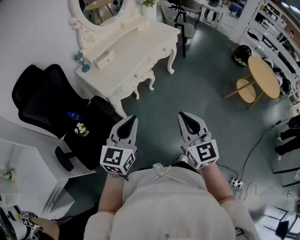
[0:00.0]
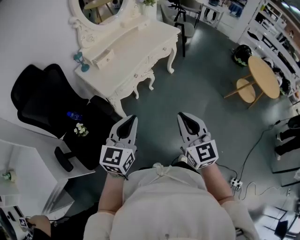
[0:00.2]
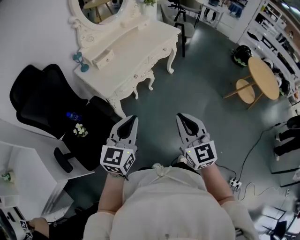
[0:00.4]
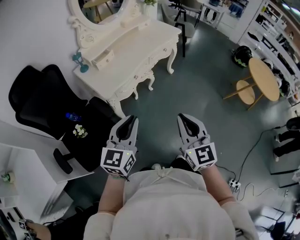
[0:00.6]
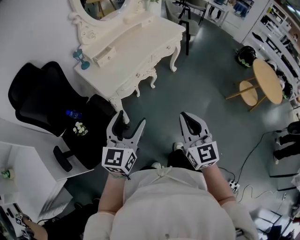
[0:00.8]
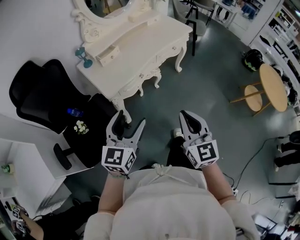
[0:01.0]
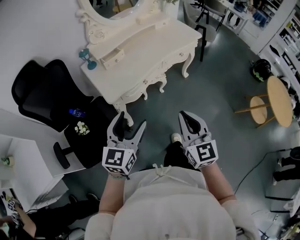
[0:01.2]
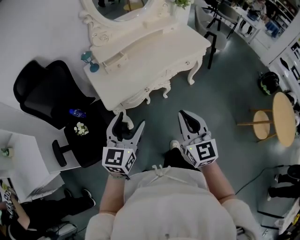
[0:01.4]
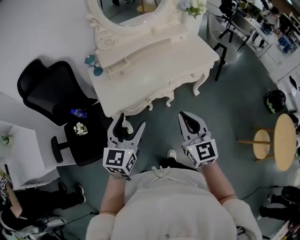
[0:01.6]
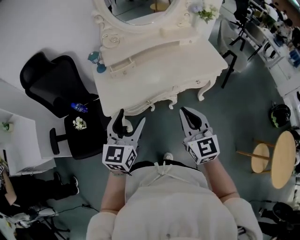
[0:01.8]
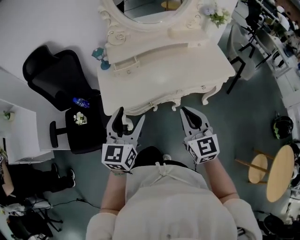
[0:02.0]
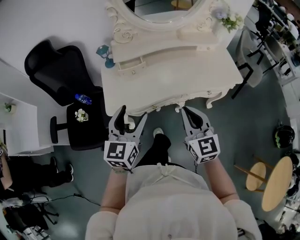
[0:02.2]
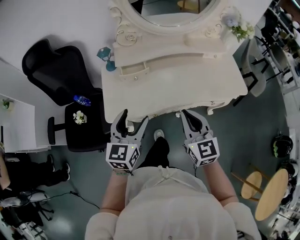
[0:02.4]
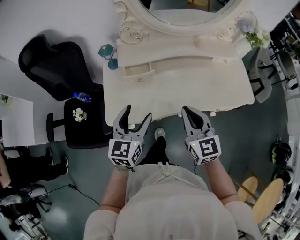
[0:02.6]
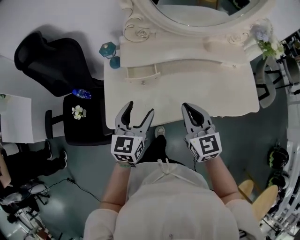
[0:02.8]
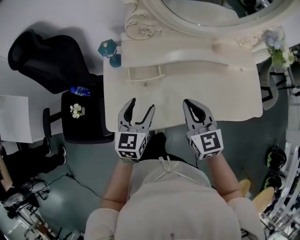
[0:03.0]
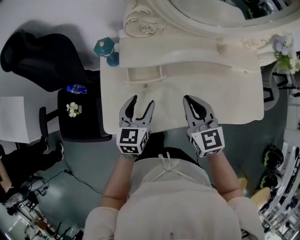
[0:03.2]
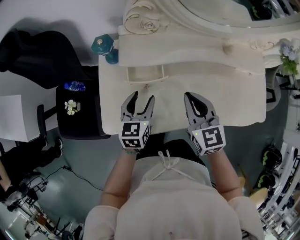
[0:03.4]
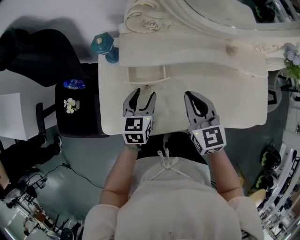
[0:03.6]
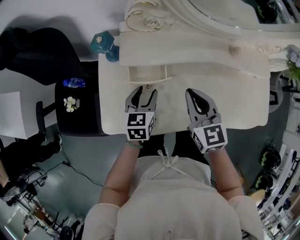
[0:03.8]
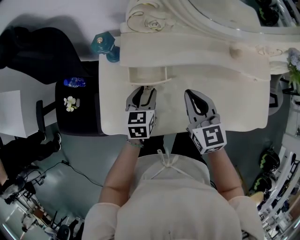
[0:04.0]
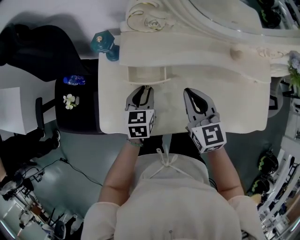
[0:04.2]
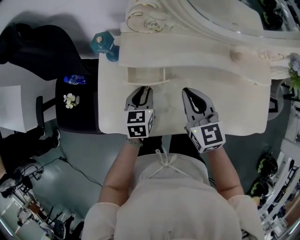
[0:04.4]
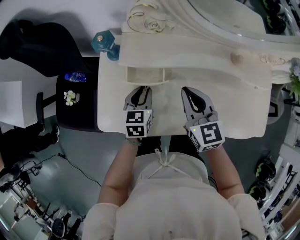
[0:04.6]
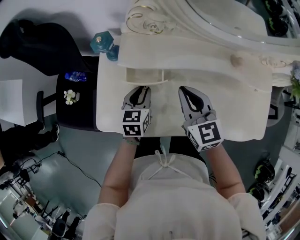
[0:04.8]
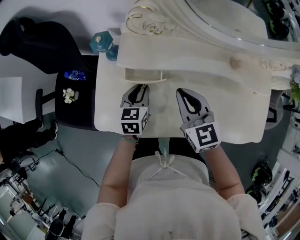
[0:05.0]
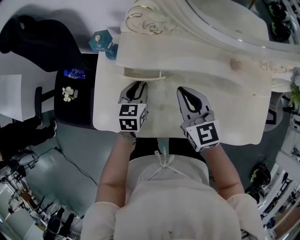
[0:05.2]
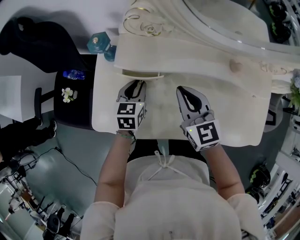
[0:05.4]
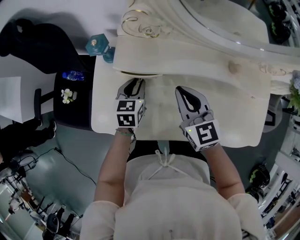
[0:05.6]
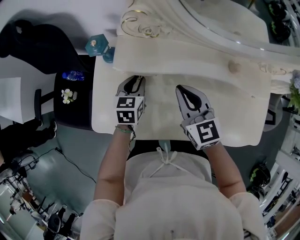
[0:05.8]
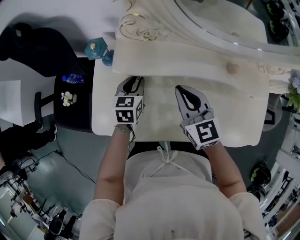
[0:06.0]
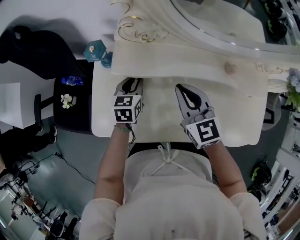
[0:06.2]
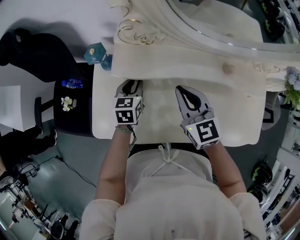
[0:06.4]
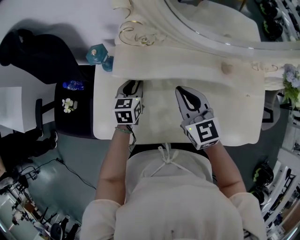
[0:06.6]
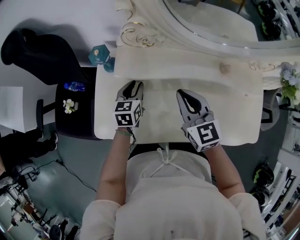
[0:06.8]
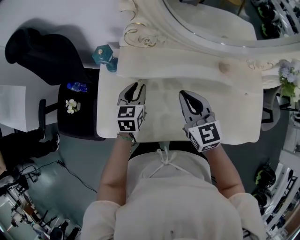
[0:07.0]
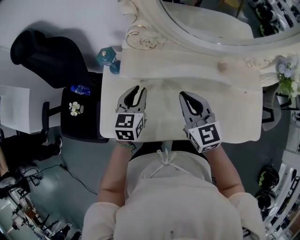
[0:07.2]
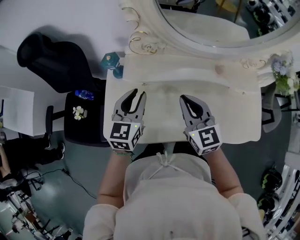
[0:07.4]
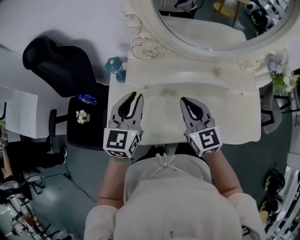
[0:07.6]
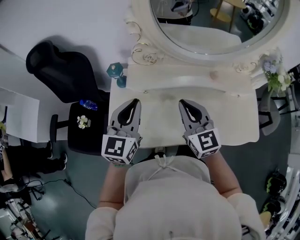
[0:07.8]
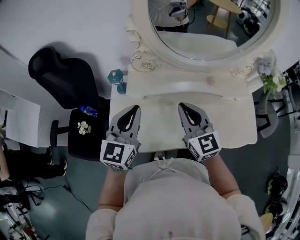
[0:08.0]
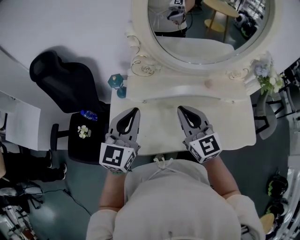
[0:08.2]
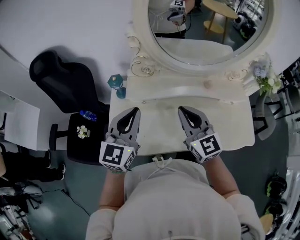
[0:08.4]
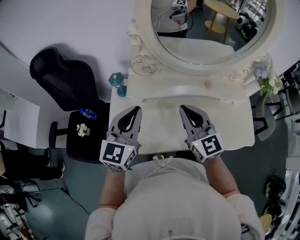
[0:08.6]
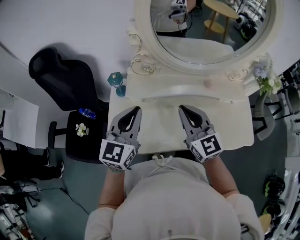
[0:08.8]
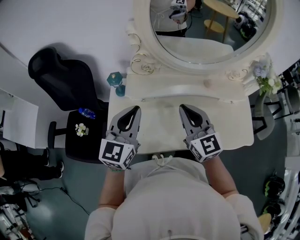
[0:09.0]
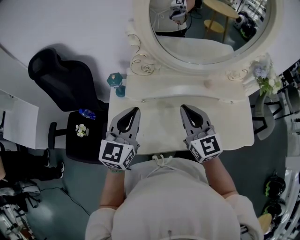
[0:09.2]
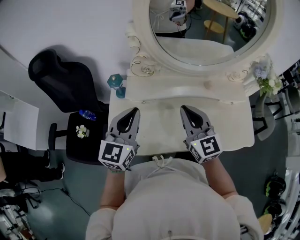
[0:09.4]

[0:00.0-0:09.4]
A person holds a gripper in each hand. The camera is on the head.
0:00.0 to 0:01.6: Both grippers travel together forward, some 30 cm. The right gripper turns by approximately 20 degrees. The left gripper swivels some 30 degrees, and opens.
0:01.6 to 0:03.2: The right gripper ends up some 40 cm from where it was, and changes its angle by about 30 degrees; the left gripper ends up approximately 40 cm from where it was, and changes its angle by roughly 30 degrees.
0:03.2 to 0:04.8: The right gripper moves forward, roughly 5 cm, while the left gripper is displaced downward and forward by approximately 10 cm, and closes its fingers.
0:04.8 to 0:06.2: The left gripper travels forward by approximately 5 cm.
0:06.2 to 0:07.8: The right gripper heads upward and backward, covering about 15 cm. Meanwhile the left gripper heads upward and backward, covering approximately 30 cm, and angles its fingers upward, by some 30 degrees.
0:07.8 to 0:09.4: There are only small adjustments of the grippers.

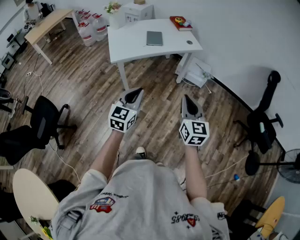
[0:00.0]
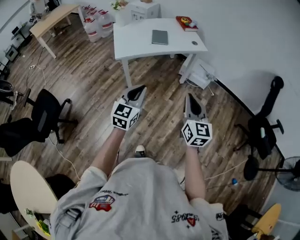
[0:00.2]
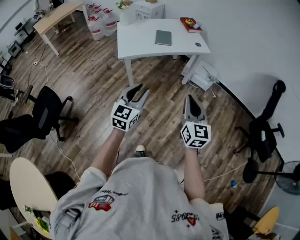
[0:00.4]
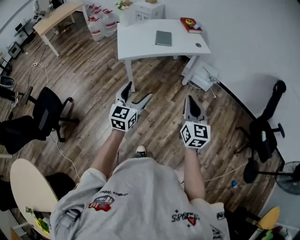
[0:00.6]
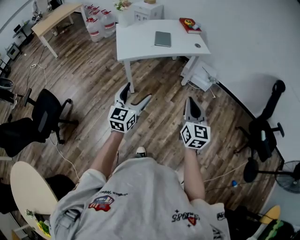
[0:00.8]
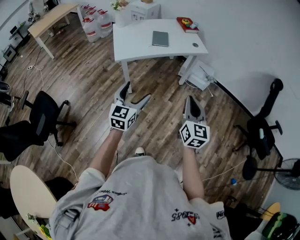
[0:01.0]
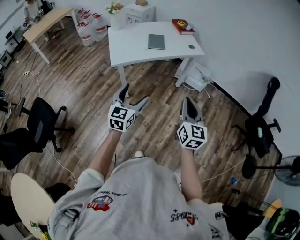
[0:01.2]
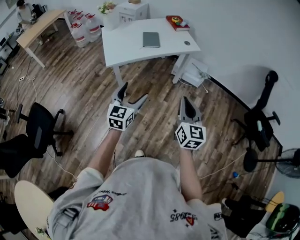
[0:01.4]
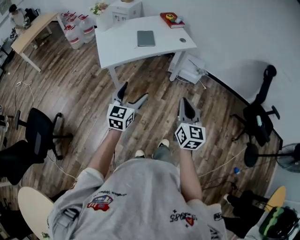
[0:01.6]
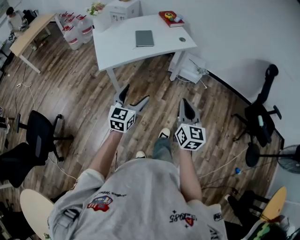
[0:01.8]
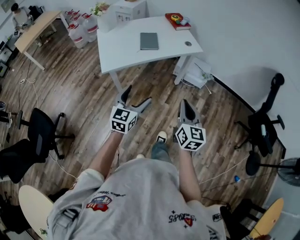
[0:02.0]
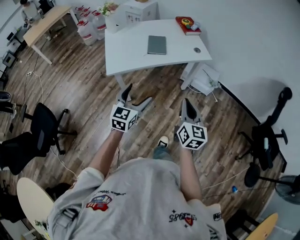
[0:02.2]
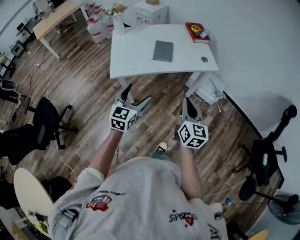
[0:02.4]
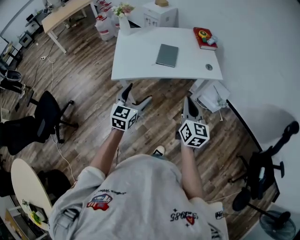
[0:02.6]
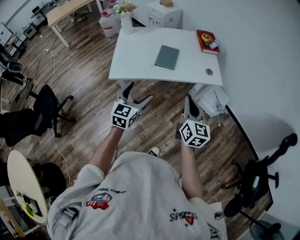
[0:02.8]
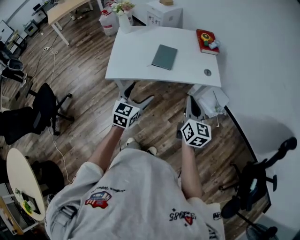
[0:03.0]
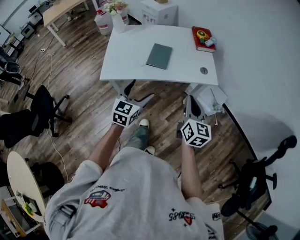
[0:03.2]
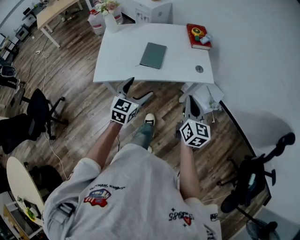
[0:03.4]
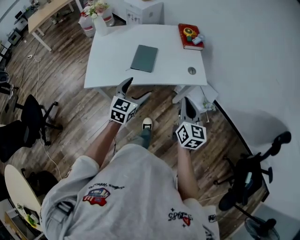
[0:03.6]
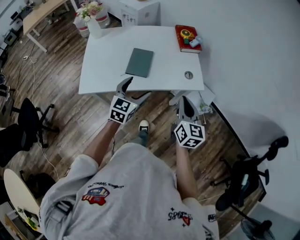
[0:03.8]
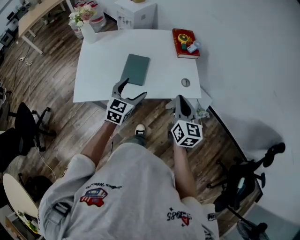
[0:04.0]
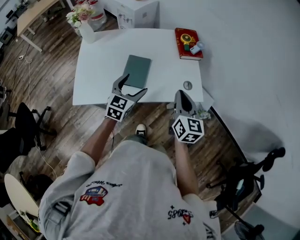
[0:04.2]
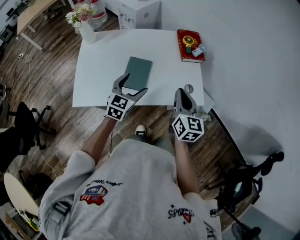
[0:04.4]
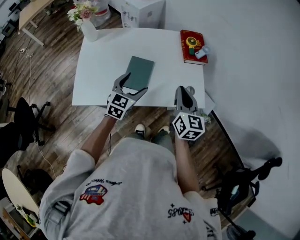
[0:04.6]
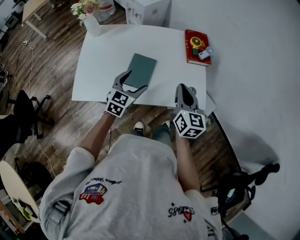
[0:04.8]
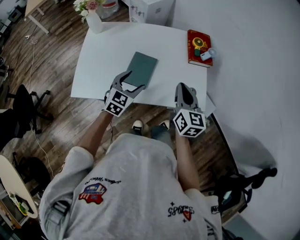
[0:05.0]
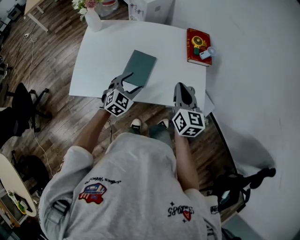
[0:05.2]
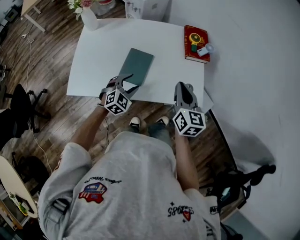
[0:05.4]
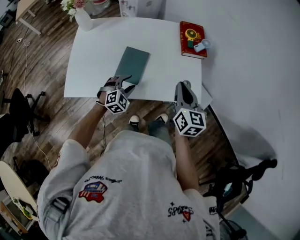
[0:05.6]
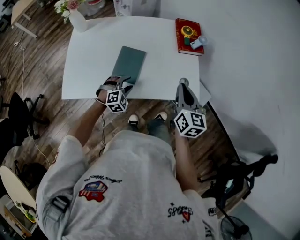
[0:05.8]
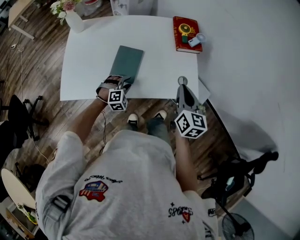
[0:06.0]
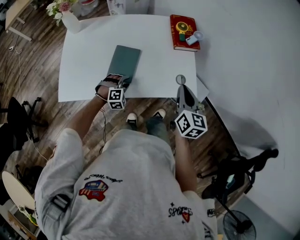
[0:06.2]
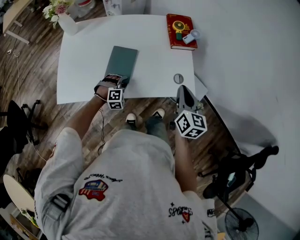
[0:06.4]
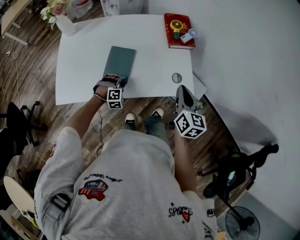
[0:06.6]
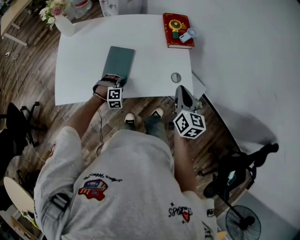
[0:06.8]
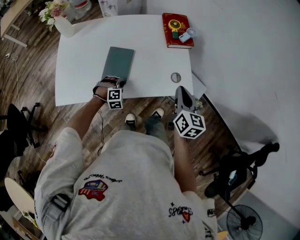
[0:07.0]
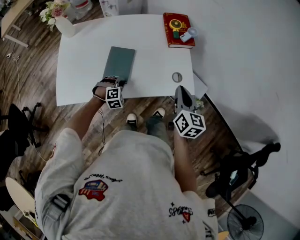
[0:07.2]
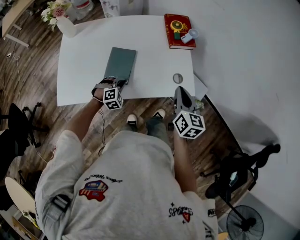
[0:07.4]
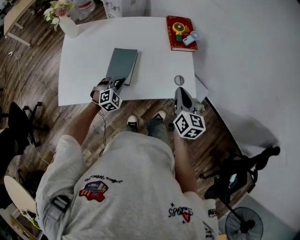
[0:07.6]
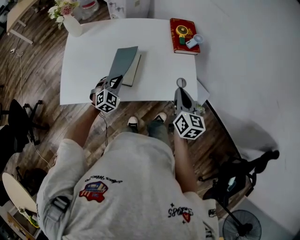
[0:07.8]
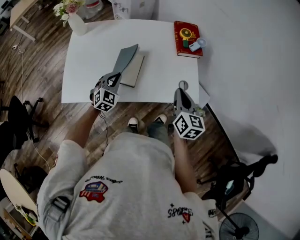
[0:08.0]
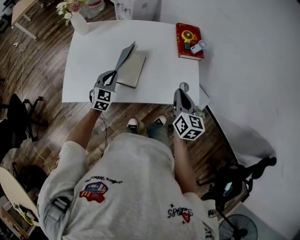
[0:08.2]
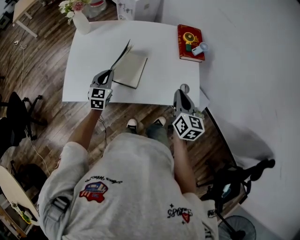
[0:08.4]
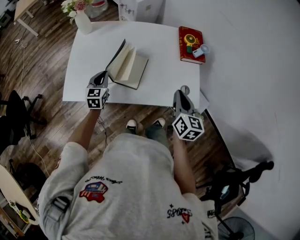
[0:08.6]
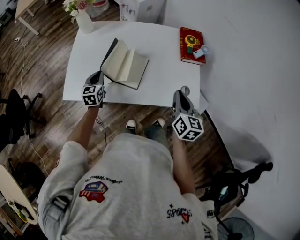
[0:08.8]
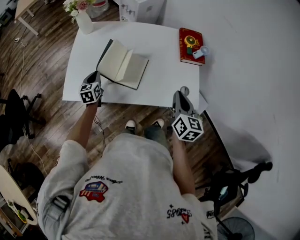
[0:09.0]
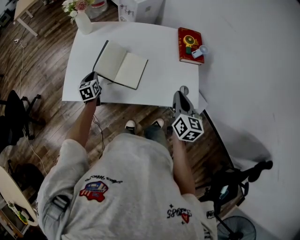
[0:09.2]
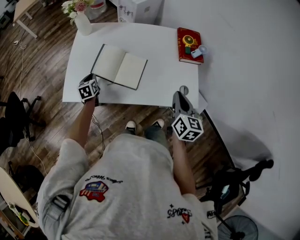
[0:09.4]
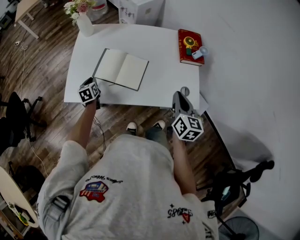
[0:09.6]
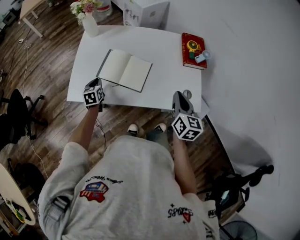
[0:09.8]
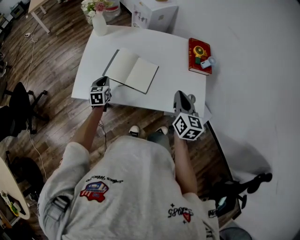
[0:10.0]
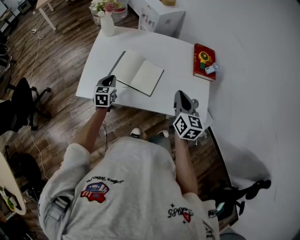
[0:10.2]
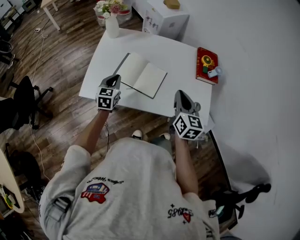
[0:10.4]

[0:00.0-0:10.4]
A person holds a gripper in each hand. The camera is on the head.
0:00.0 to 0:01.4: The right gripper changes place by some 5 cm. Meanwhile the left gripper goes some 10 cm forward and to the left, and opens up.
0:01.4 to 0:03.0: Both grippers move forward, some 35 cm. The right gripper rotates approximately 20 degrees.
0:03.0 to 0:04.4: Both grippers travel together forward, some 35 cm.
0:04.4 to 0:06.0: The left gripper shifts some 20 cm downward, twists roughly 50 degrees clockwise, seen from behind, and closes its fingers. The right gripper shifts about 5 cm to the right.
0:06.0 to 0:07.4: The left gripper closes up.
0:07.4 to 0:09.0: The right gripper travels to the left by some 10 cm. Meanwhile the left gripper goes about 25 cm to the left, and rolls counterclockwise, seen from behind, by about 80 degrees.
0:09.0 to 0:10.4: The right gripper shifts some 10 cm to the left; the left gripper moves upward, approximately 10 cm.

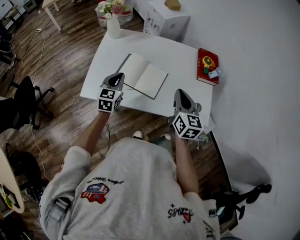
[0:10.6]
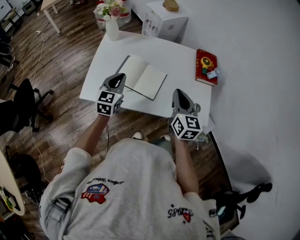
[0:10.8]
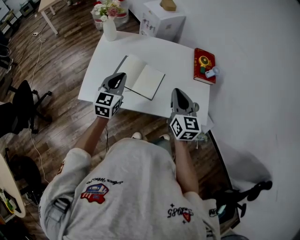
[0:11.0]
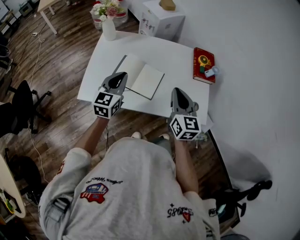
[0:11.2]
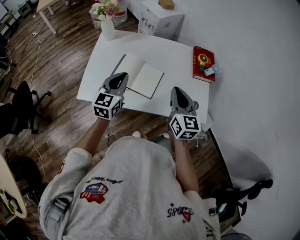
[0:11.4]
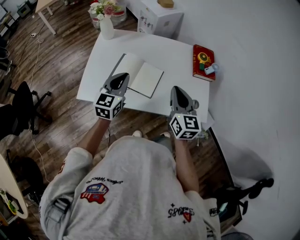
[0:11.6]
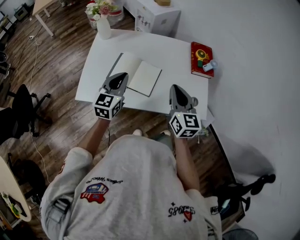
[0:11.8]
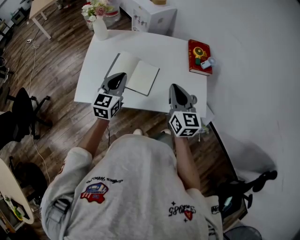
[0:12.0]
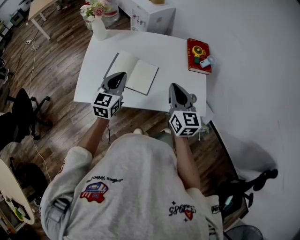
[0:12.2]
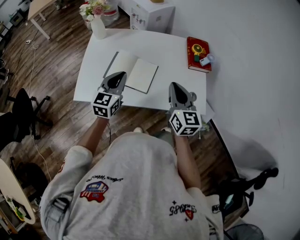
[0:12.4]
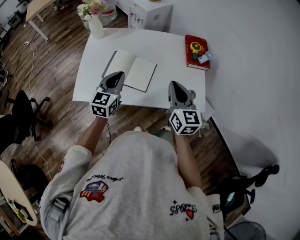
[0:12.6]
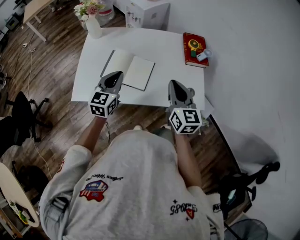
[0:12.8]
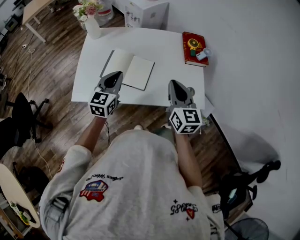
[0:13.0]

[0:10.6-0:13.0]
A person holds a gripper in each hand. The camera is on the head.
0:10.6 to 0:11.8: The left gripper shifts some 10 cm upward and to the right.
0:11.8 to 0:13.0: There are only small adjustments of the grippers.

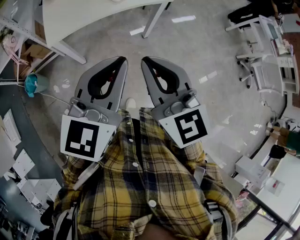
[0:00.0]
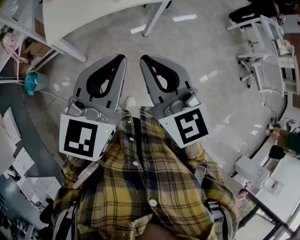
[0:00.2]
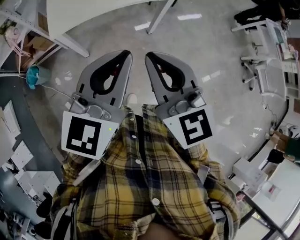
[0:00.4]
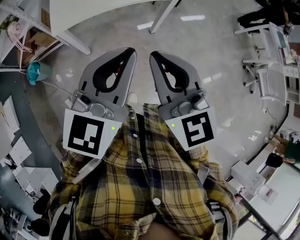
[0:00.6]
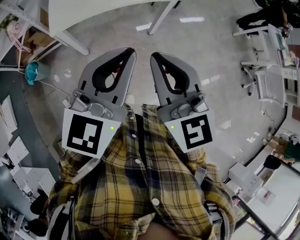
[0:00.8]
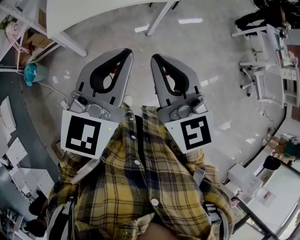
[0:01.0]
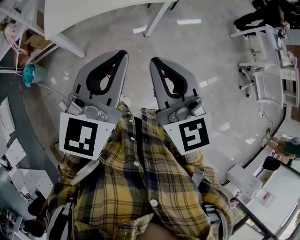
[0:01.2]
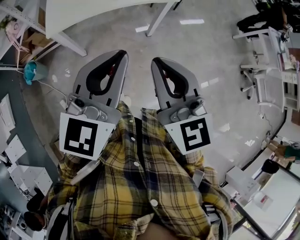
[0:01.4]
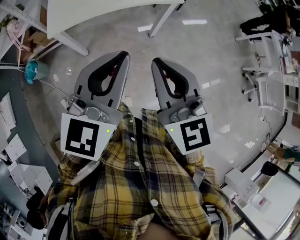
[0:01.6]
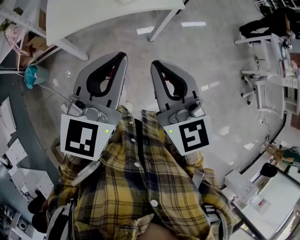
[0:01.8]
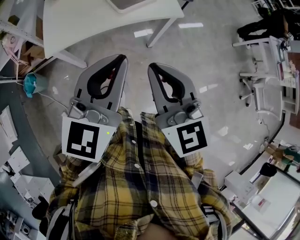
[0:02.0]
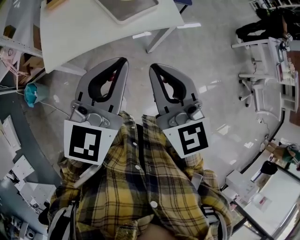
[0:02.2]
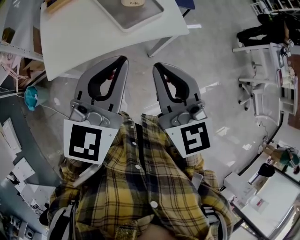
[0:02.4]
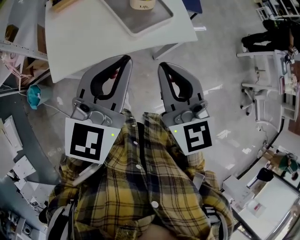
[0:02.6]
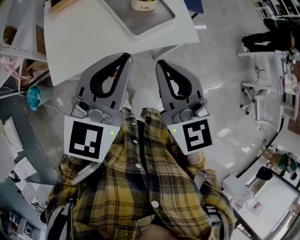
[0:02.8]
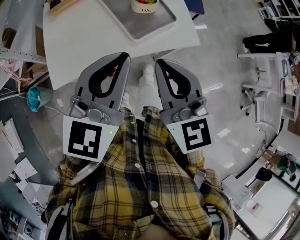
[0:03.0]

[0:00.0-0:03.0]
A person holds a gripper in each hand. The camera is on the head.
0:00.0 to 0:01.6: The right gripper changes place by roughly 5 cm.
0:01.6 to 0:03.0: Both grippers move forward, approximately 30 cm.
